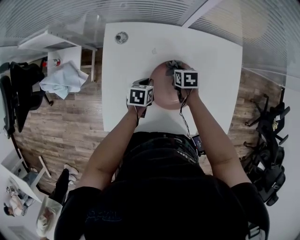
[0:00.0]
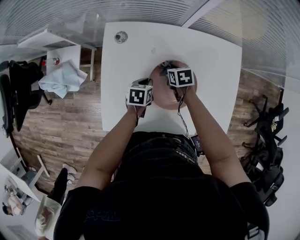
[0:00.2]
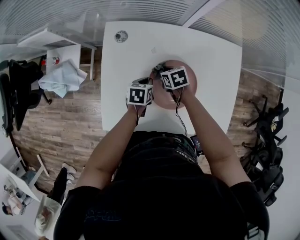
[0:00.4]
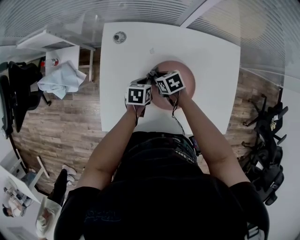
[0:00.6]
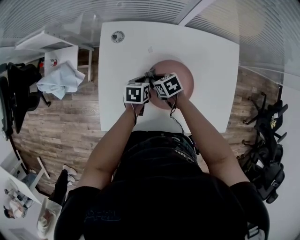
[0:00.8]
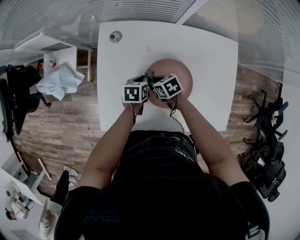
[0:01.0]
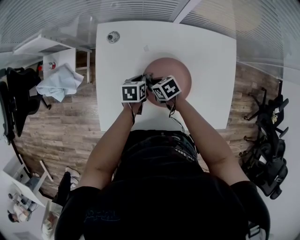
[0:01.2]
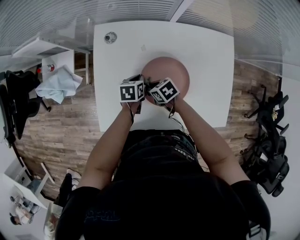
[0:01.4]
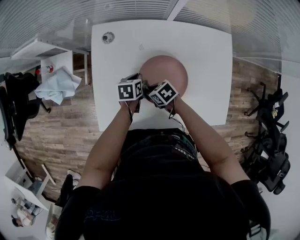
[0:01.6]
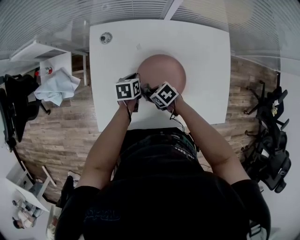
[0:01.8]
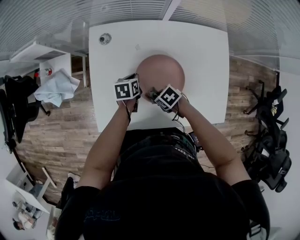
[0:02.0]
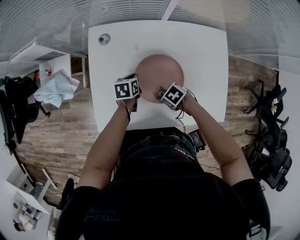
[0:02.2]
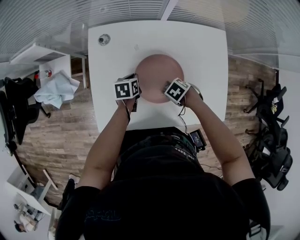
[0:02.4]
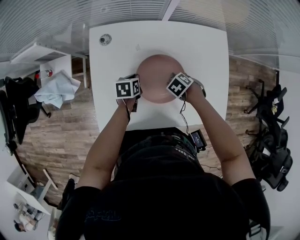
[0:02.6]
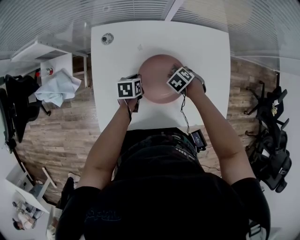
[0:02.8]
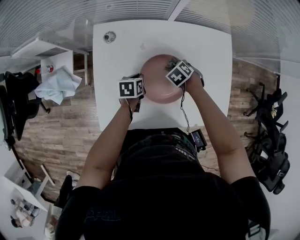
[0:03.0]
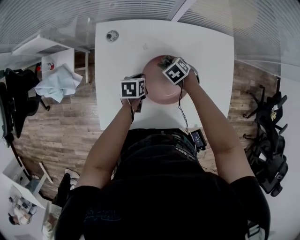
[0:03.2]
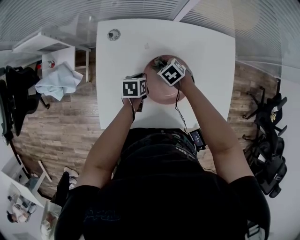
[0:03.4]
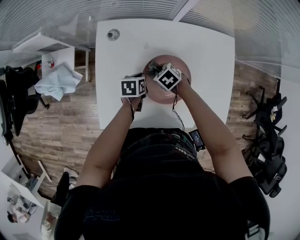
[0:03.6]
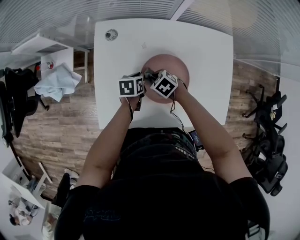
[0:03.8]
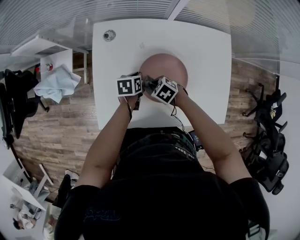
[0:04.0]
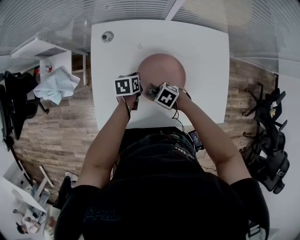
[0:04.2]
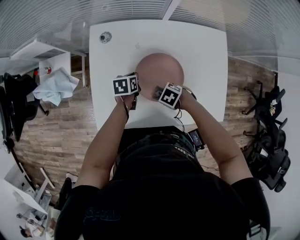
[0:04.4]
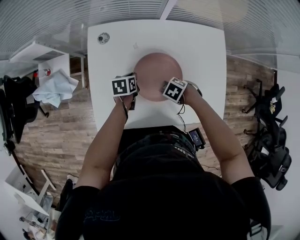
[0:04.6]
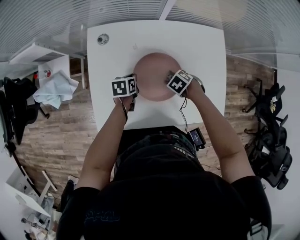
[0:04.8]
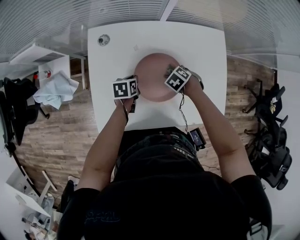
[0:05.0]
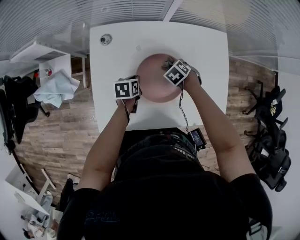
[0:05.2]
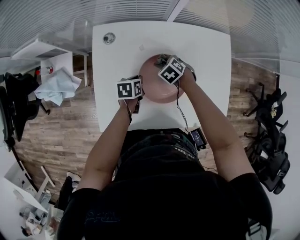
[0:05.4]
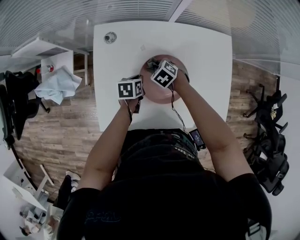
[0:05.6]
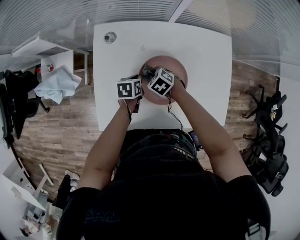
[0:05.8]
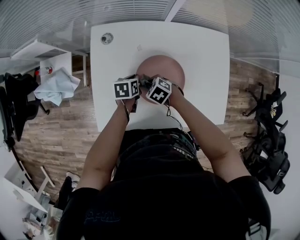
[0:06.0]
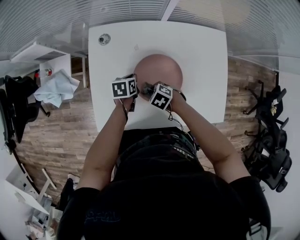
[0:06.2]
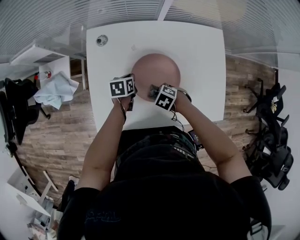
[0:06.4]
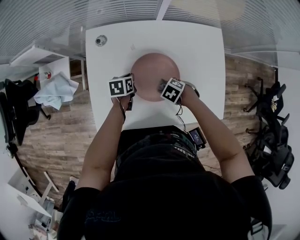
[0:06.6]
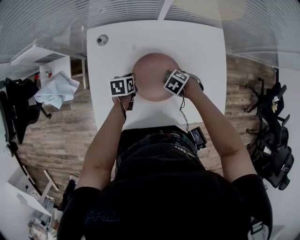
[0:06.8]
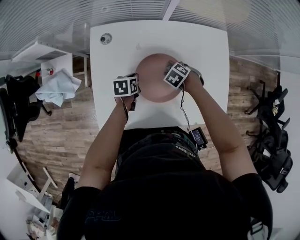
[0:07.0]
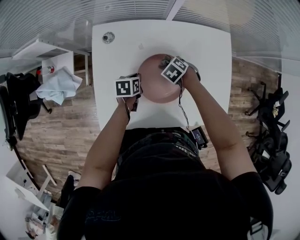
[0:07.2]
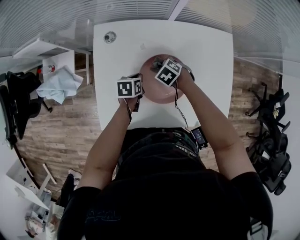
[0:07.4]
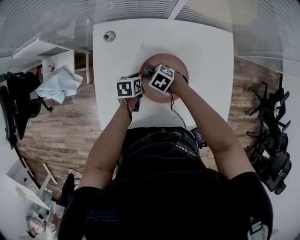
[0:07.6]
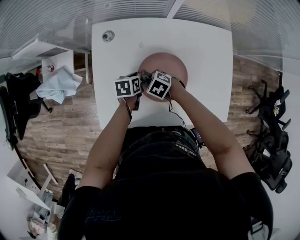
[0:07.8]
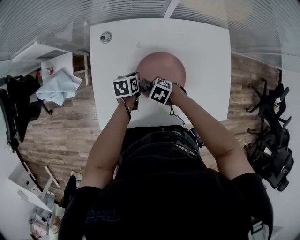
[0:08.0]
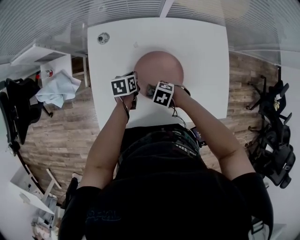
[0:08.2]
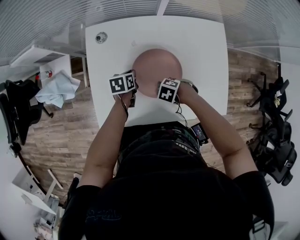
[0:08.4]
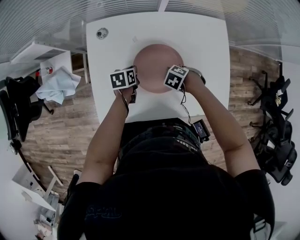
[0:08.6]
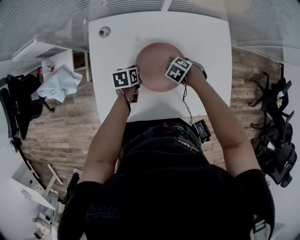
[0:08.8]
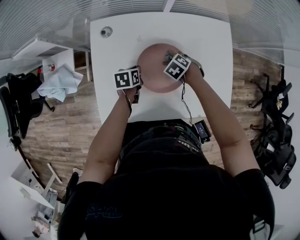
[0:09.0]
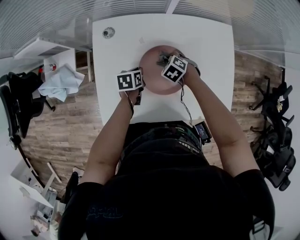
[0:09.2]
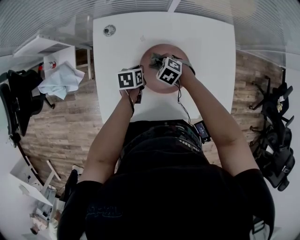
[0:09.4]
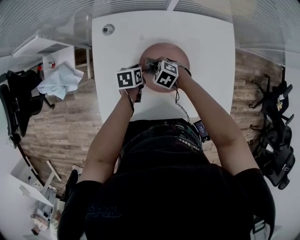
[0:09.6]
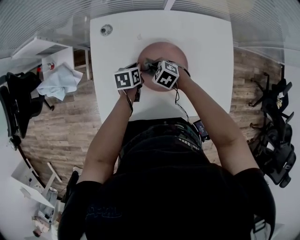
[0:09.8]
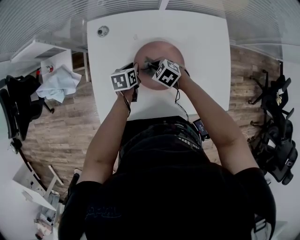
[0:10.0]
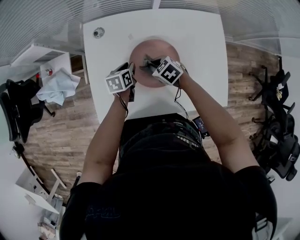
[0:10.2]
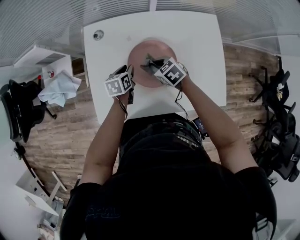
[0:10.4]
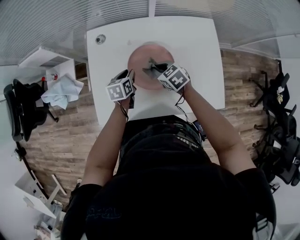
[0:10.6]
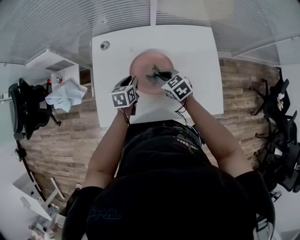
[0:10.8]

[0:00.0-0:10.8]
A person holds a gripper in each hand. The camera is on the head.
0.0 to 1.6 s: The right gripper moves approximately 20 cm, and rotates some 40 degrees.
1.6 to 3.0 s: The right gripper moves roughly 20 cm, and changes its angle by about 40 degrees.
3.0 to 4.6 s: The right gripper changes place by approximately 15 cm, and turns by approximately 20 degrees.
7.8 to 9.2 s: The right gripper moves some 10 cm.
9.2 to 10.8 s: The left gripper heads upward, covering roughly 10 cm, and opens its fingers. Meanwhile the right gripper is displaced upward and backward by roughly 15 cm, and changes its angle by about 40 degrees.

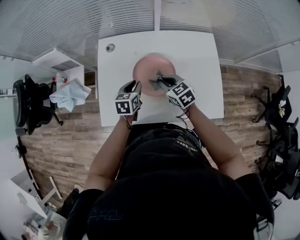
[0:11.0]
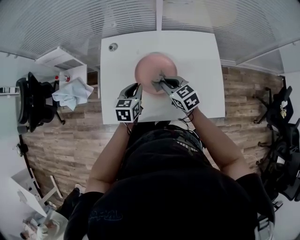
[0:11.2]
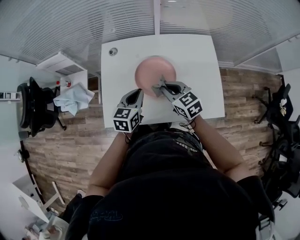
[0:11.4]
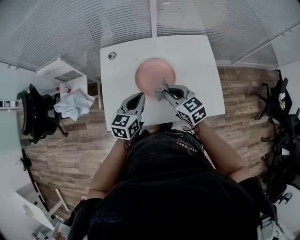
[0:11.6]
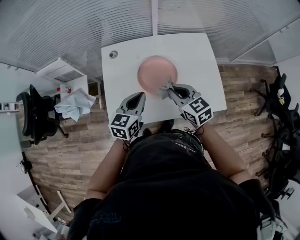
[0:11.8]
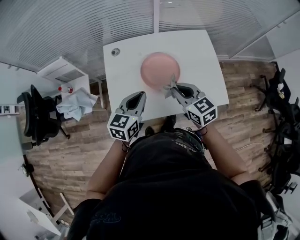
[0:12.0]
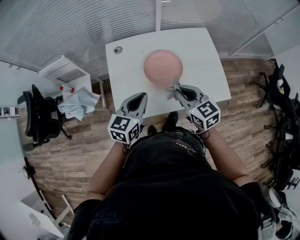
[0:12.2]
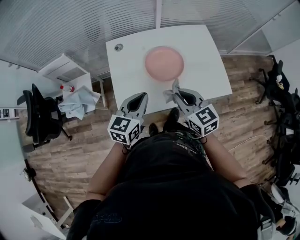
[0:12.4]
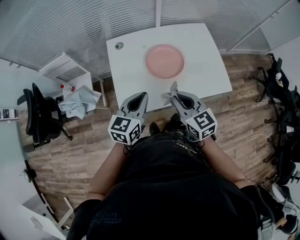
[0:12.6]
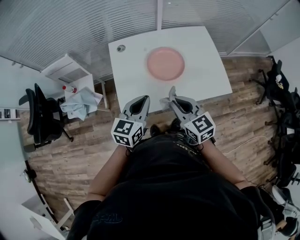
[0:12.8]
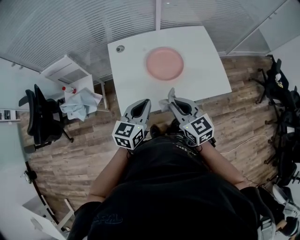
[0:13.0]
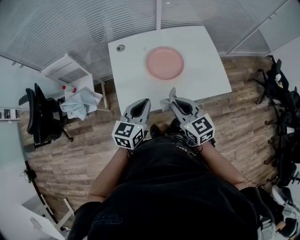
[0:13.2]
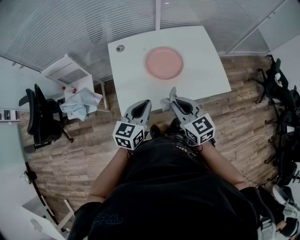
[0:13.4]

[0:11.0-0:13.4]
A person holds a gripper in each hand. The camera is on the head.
11.0 to 12.2 s: The two grippers go some 20 cm upward and backward. The left gripper swivels approximately 30 degrees, while the right gripper changes its angle by approximately 20 degrees.
12.2 to 13.4 s: Both grippers travel together backward, some 10 cm.

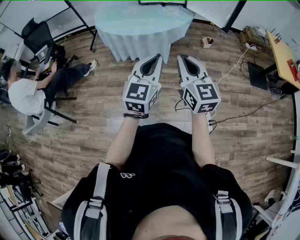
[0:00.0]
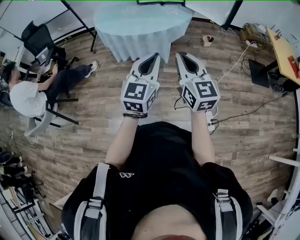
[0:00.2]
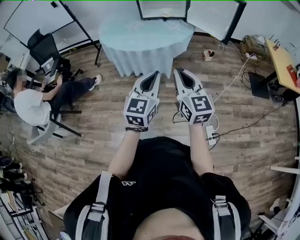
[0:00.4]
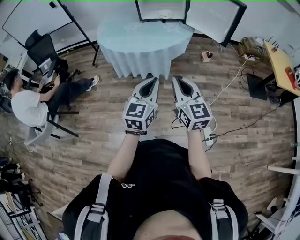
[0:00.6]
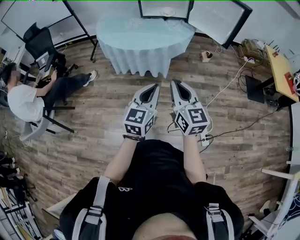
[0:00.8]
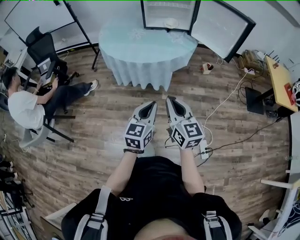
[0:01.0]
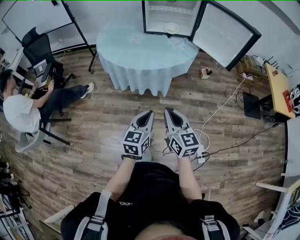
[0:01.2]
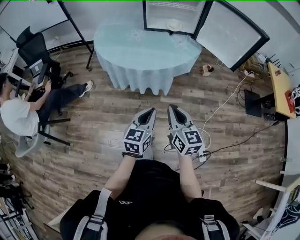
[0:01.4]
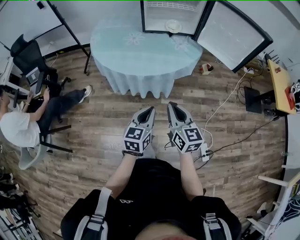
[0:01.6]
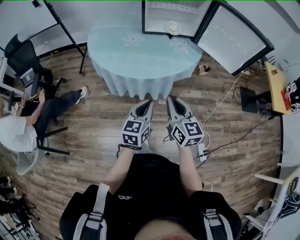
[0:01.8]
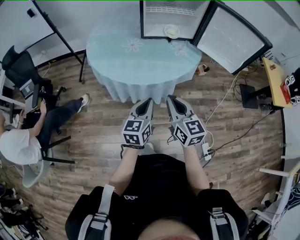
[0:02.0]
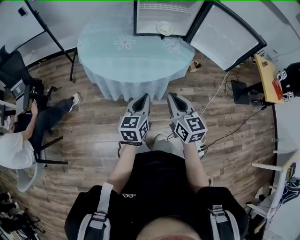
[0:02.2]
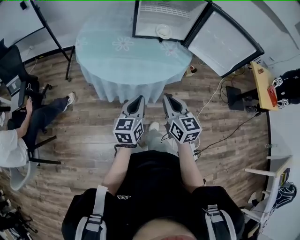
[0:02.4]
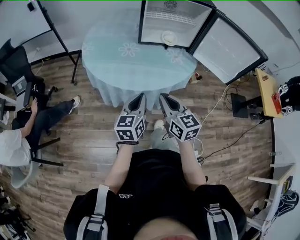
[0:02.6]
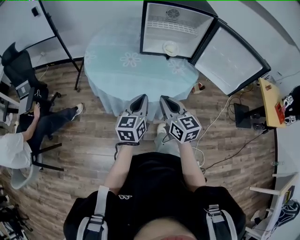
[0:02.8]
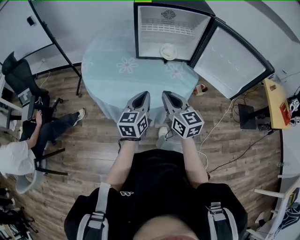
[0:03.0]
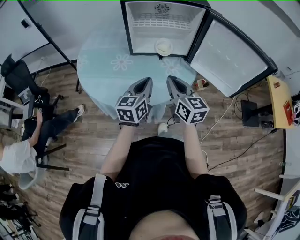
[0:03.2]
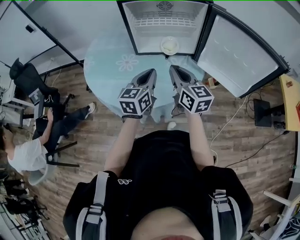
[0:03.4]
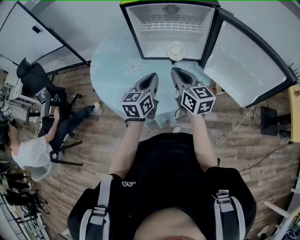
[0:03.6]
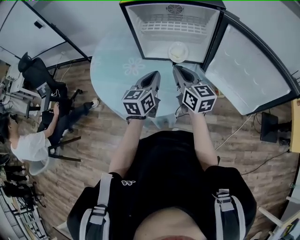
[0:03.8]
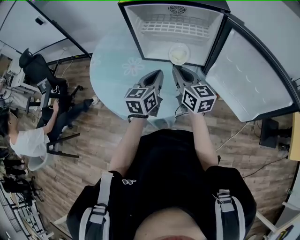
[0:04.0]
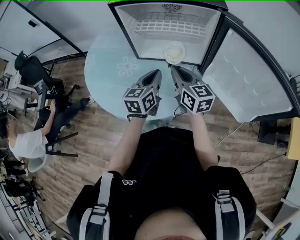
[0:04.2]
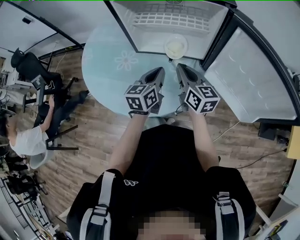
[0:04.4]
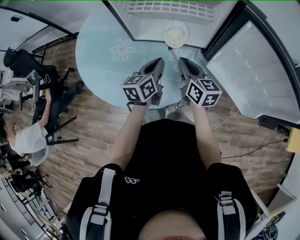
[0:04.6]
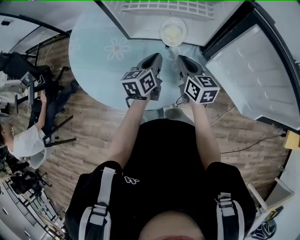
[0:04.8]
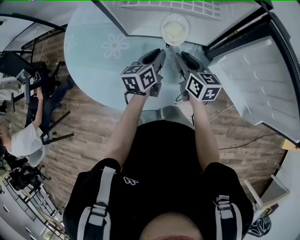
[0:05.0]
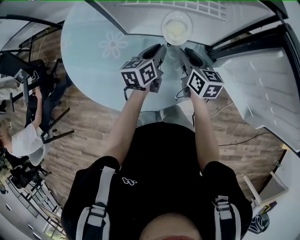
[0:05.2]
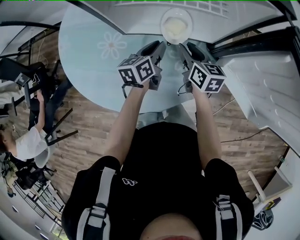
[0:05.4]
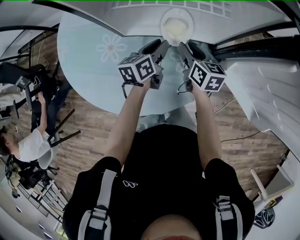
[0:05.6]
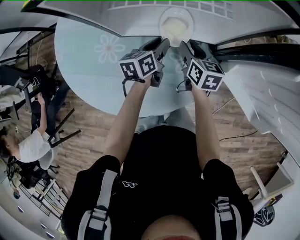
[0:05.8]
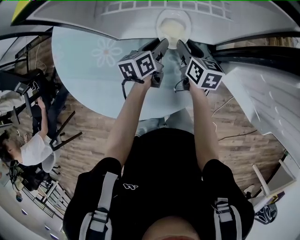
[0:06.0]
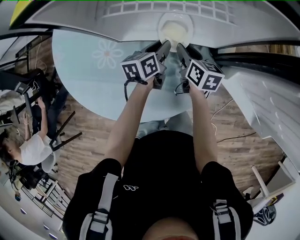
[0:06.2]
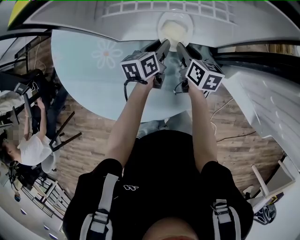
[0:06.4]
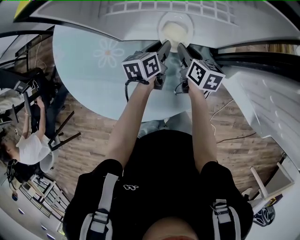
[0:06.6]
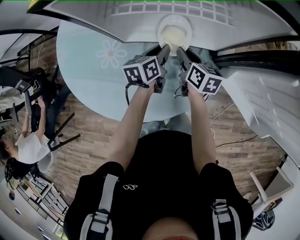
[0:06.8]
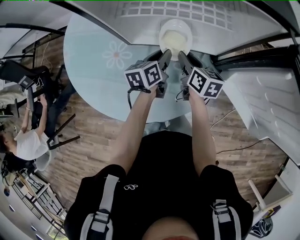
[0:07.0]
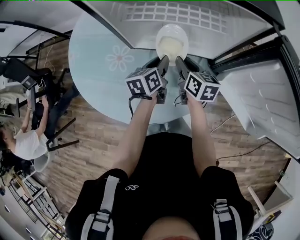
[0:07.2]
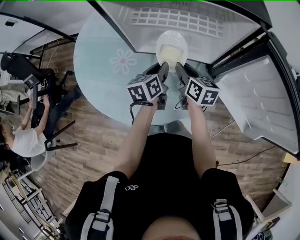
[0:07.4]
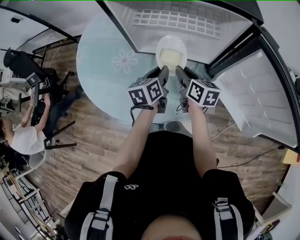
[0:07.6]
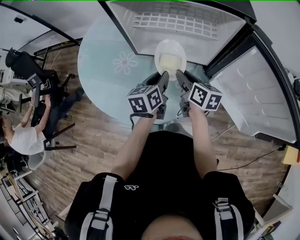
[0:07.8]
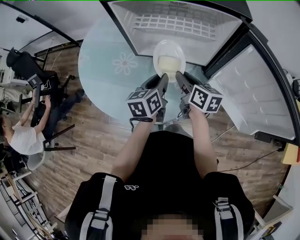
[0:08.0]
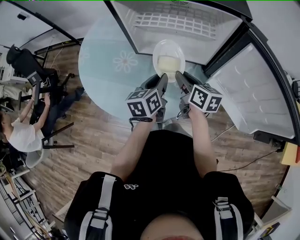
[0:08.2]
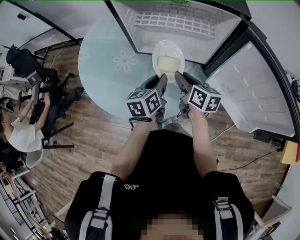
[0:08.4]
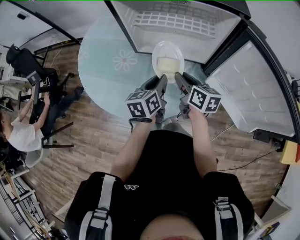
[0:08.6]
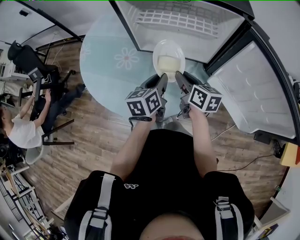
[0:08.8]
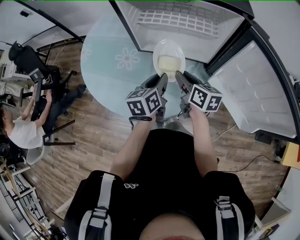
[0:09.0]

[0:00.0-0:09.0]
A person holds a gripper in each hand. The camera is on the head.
0.0 to 1.6 s: The right gripper goes some 20 cm forward, to the left and downward. Meanwhile the left gripper heads forward, downward and to the left, covering roughly 25 cm, and changes its angle by approximately 20 degrees.
1.6 to 3.0 s: The two grippers go about 25 cm forward.
3.0 to 4.4 s: Both grippers travel together forward and to the right, roughly 25 cm.
4.4 to 6.0 s: The left gripper travels forward and downward by approximately 20 cm, changes its angle by approximately 20 degrees, and opens; the right gripper moves downward and forward, some 20 cm, swivels some 30 degrees, and opens up.
6.0 to 7.6 s: Both grippers travel together upward and backward, approximately 10 cm.
7.6 to 9.0 s: The right gripper shifts by roughly 5 cm. The left gripper moves backward, roughly 5 cm.

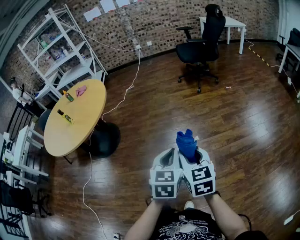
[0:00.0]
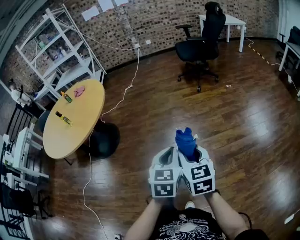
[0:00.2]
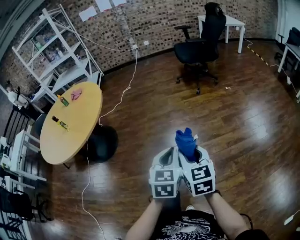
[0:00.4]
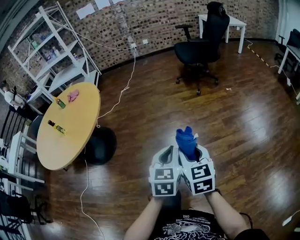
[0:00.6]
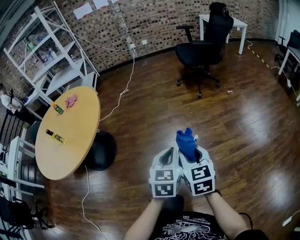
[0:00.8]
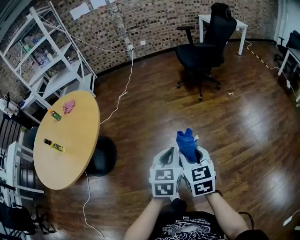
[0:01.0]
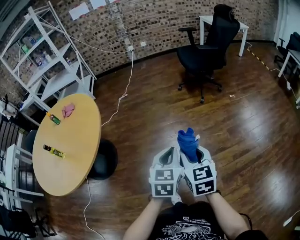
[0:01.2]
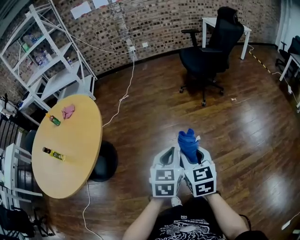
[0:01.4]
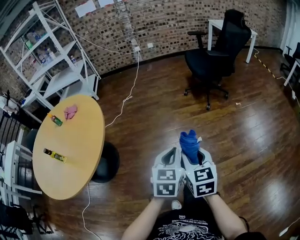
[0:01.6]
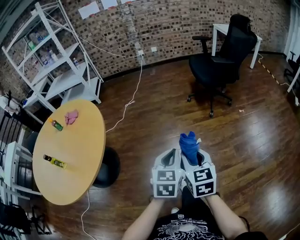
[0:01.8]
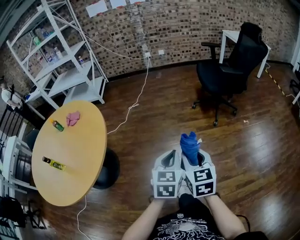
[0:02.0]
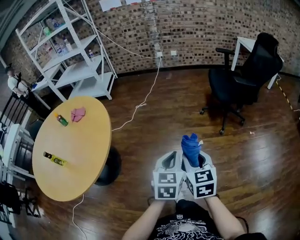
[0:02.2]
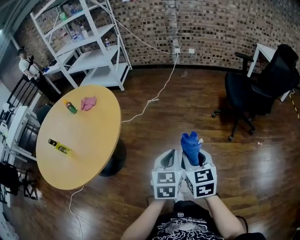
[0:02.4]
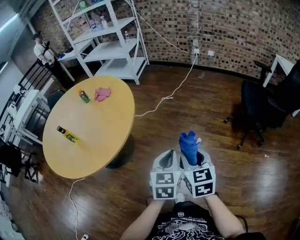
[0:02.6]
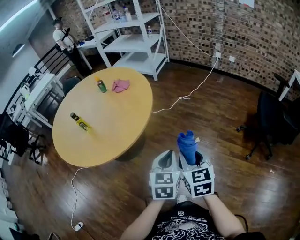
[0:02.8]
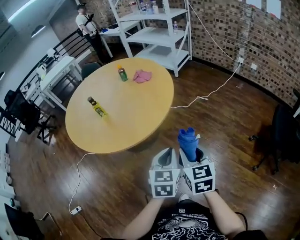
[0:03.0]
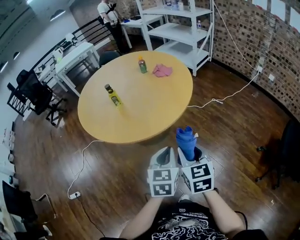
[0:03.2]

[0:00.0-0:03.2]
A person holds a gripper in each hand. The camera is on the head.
0.0 to 1.6 s: The pair of grippers is taken forward, some 40 cm.
1.6 to 3.2 s: The right gripper moves roughly 35 cm, and turns by roughly 60 degrees; the left gripper changes place by roughly 30 cm, and rotates approximately 60 degrees.
